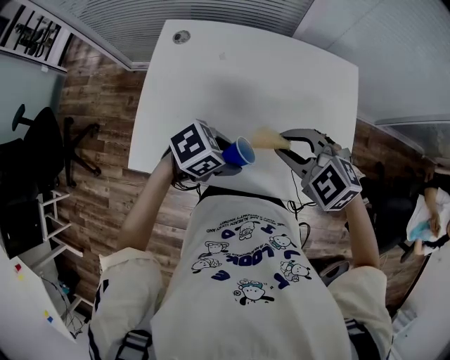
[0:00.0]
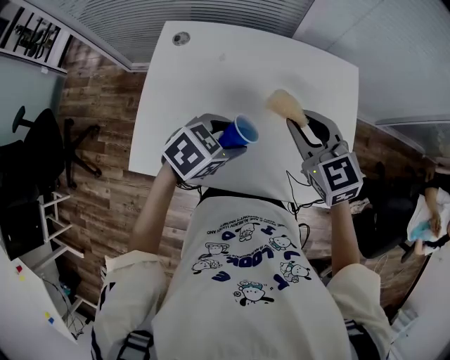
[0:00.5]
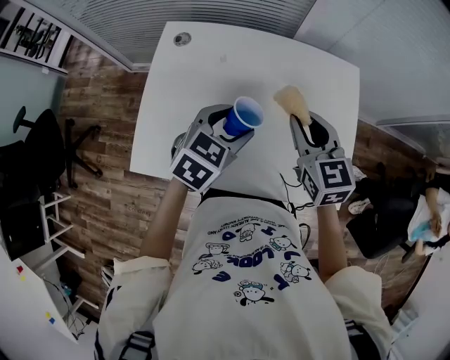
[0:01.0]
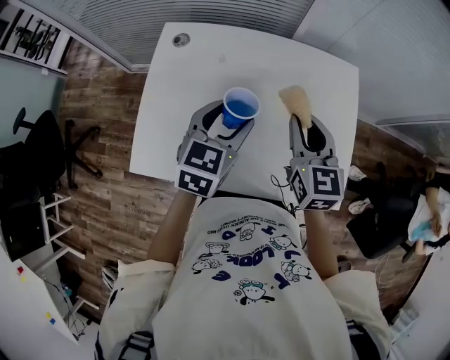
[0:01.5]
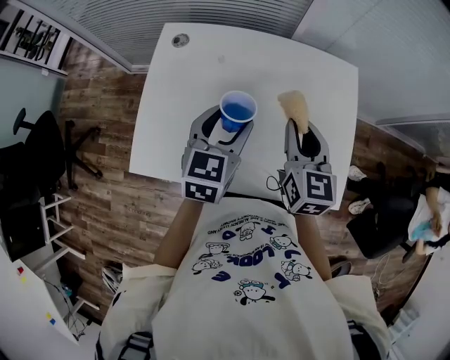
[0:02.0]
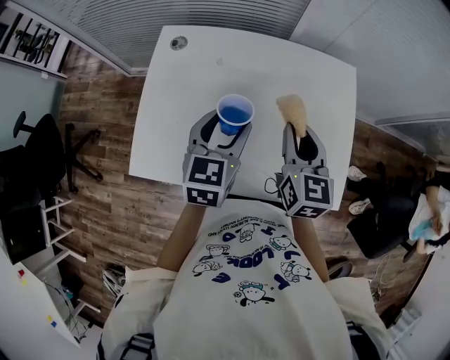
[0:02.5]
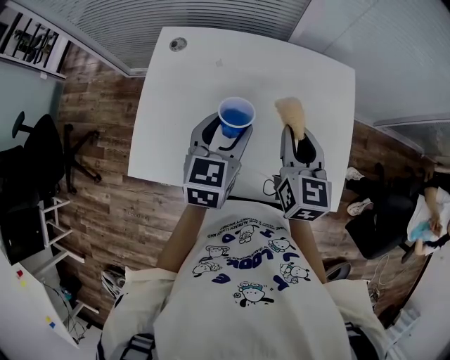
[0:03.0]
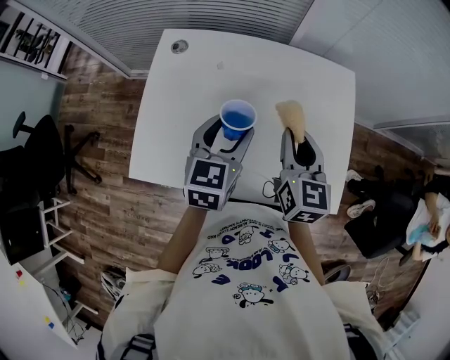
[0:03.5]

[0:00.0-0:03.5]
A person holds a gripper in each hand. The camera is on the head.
0:00.0 to 0:02.0: The left gripper moves some 15 cm, and rotates about 60 degrees. The right gripper shifts by about 10 cm, and changes its angle by approximately 70 degrees.
0:02.0 to 0:03.5: The two grippers keep their place.

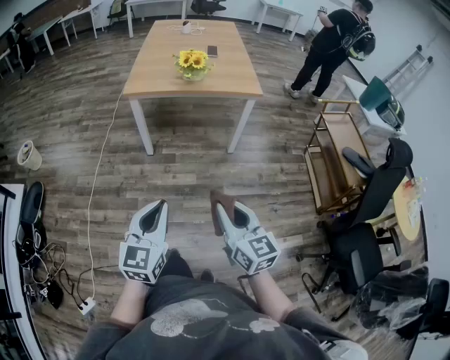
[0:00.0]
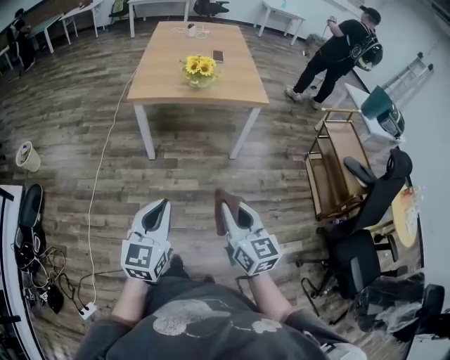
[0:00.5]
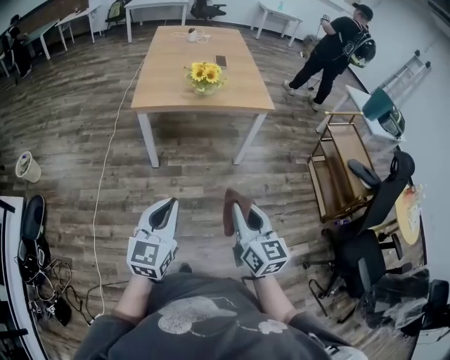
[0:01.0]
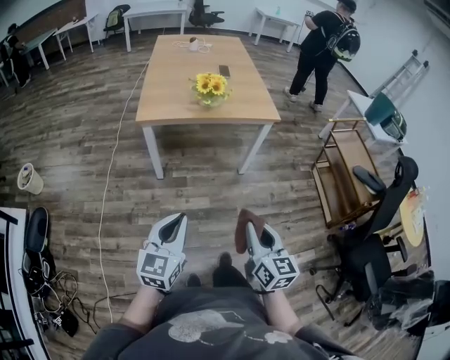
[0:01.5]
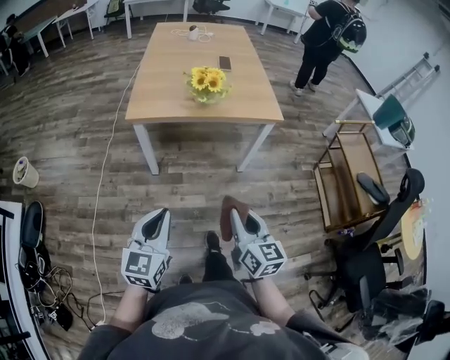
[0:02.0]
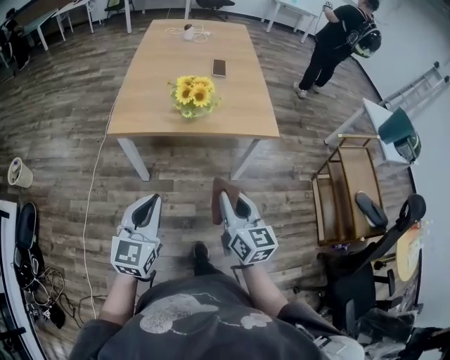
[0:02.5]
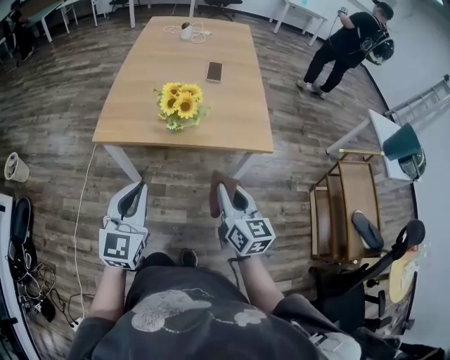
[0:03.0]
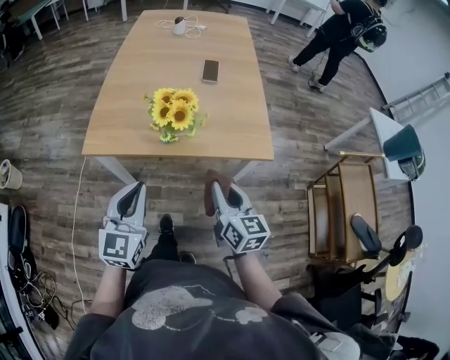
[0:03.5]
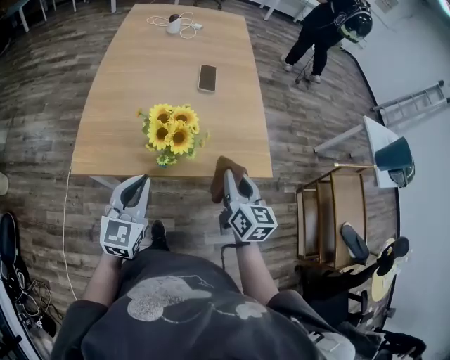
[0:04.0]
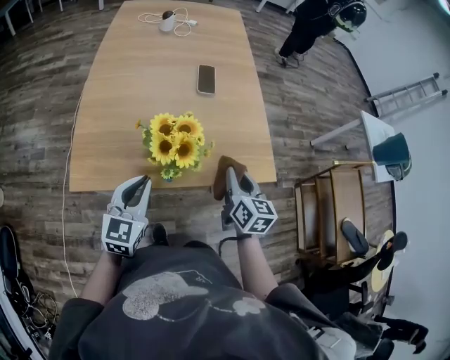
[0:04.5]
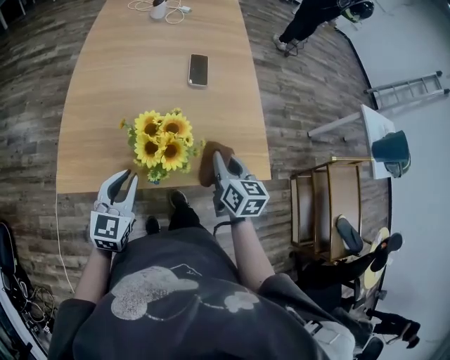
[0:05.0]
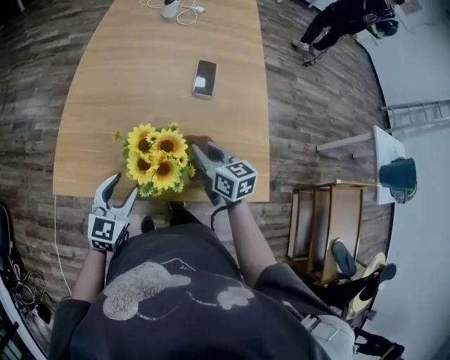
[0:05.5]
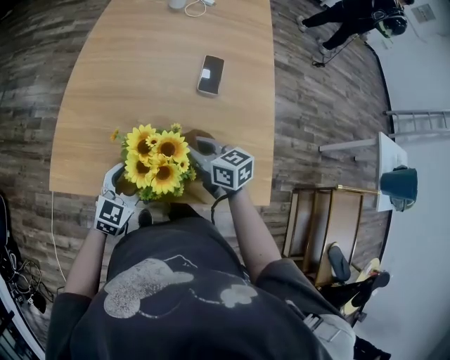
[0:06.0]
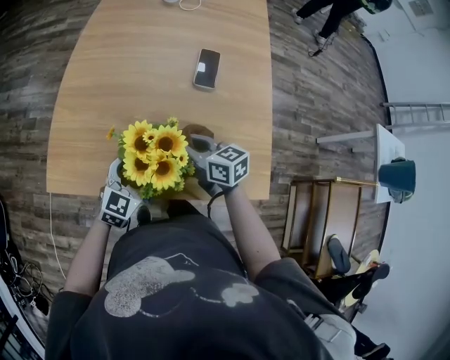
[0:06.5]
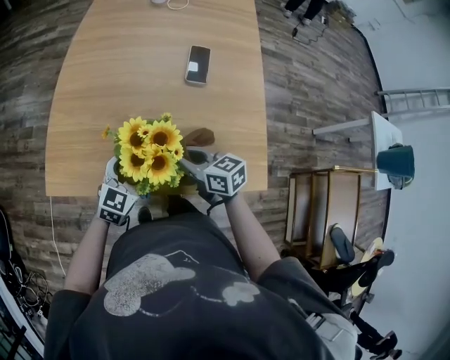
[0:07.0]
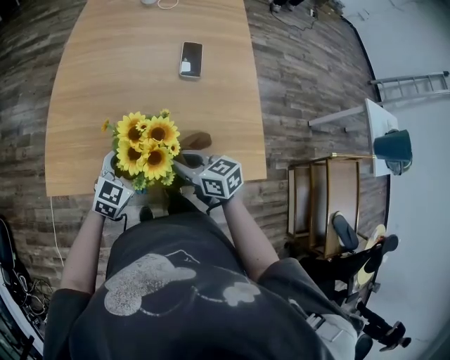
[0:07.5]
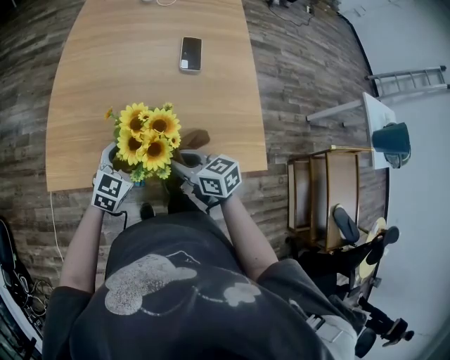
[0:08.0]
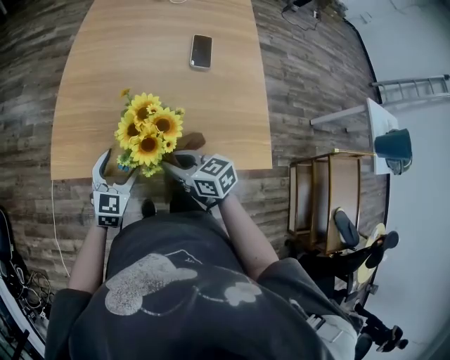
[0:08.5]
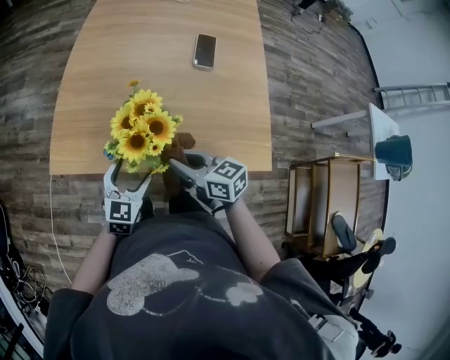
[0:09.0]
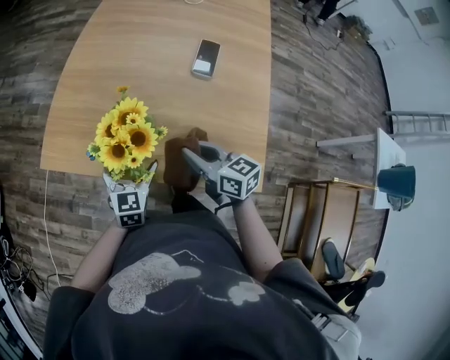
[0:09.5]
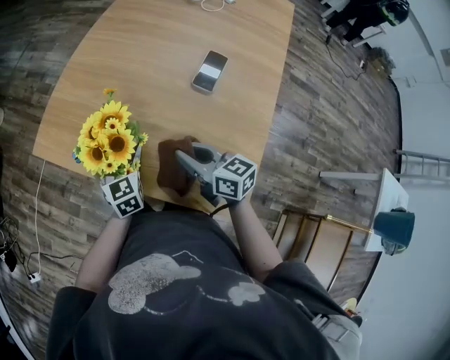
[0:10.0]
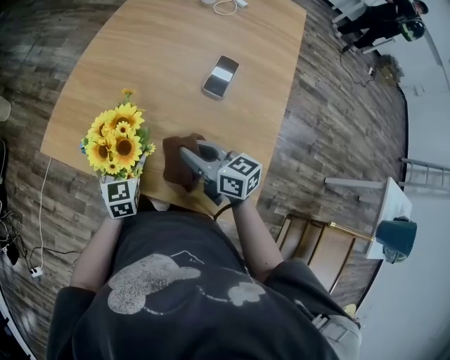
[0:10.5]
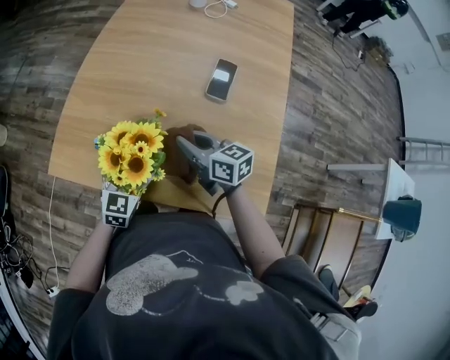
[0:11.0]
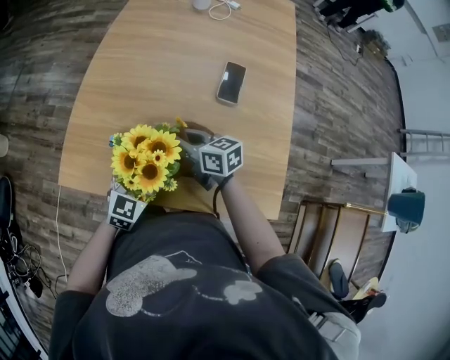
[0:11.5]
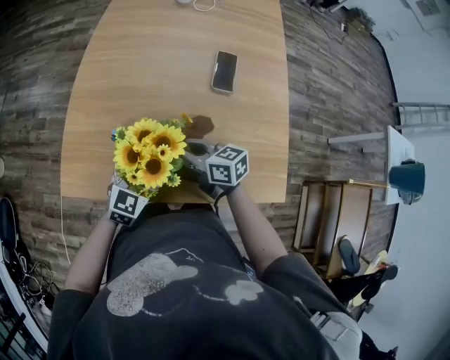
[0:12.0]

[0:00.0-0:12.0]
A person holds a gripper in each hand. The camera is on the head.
0:00.0 to 0:02.0: The left gripper moves forward and to the left, about 20 cm. Meanwhile the right gripper travels forward by some 20 cm.
0:02.0 to 0:04.0: The two grippers travel together, forward, approximately 40 cm.
0:04.0 to 0:06.0: The right gripper changes place by about 25 cm, and rotates about 50 degrees. The left gripper goes approximately 15 cm downward, and opens its fingers.
0:06.0 to 0:08.0: The right gripper goes some 10 cm backward.
0:08.0 to 0:10.0: The right gripper ends up roughly 10 cm from where it was. The left gripper rotates about 70 degrees.
0:10.0 to 0:12.0: The right gripper ends up about 15 cm from where it was; the left gripper changes its angle by some 60 degrees.

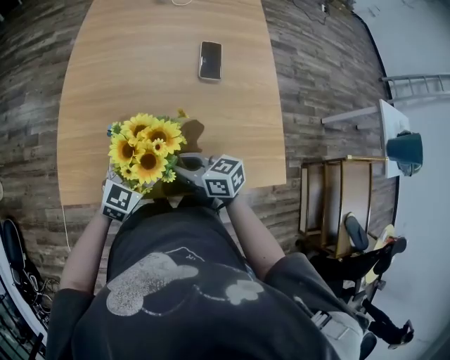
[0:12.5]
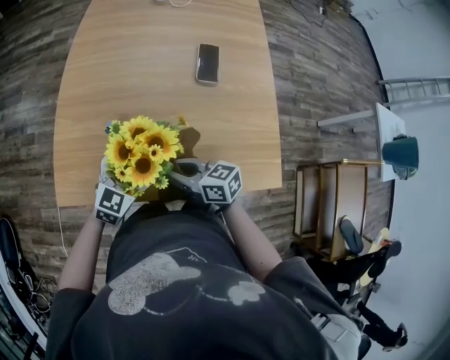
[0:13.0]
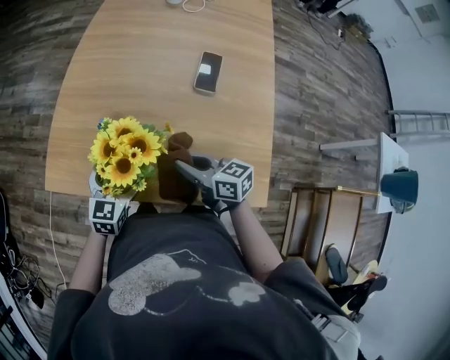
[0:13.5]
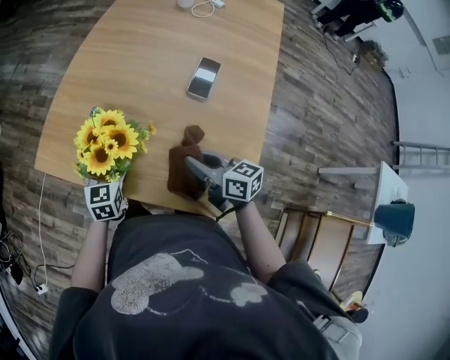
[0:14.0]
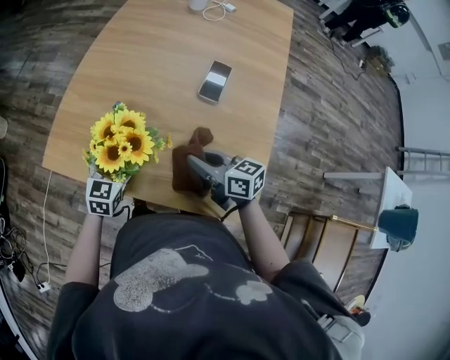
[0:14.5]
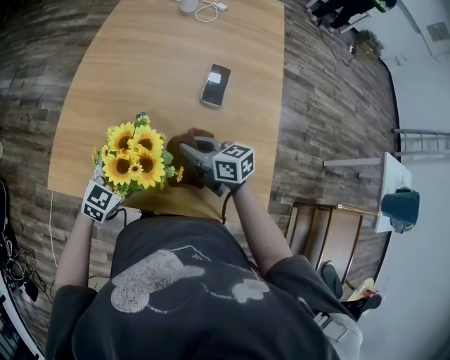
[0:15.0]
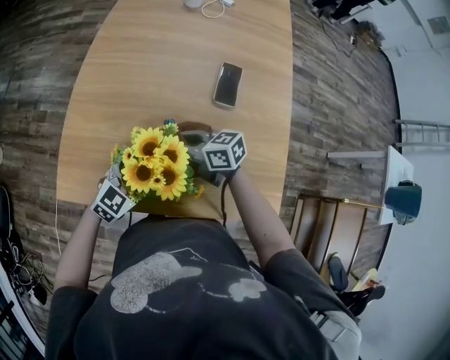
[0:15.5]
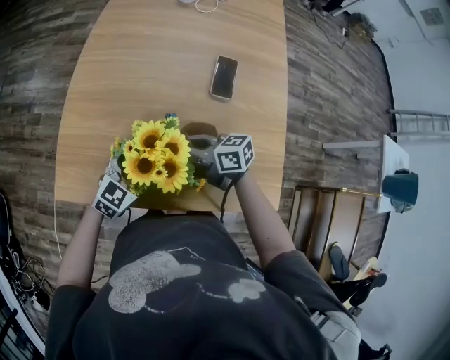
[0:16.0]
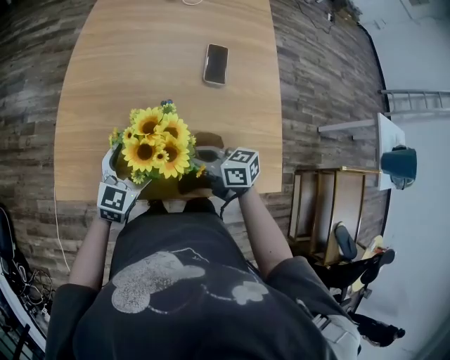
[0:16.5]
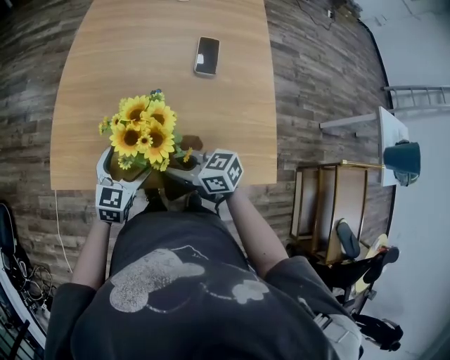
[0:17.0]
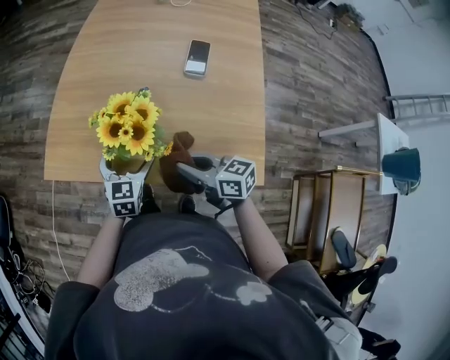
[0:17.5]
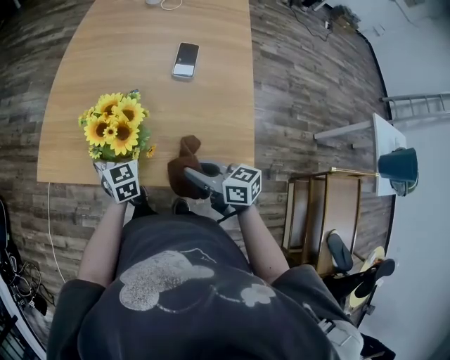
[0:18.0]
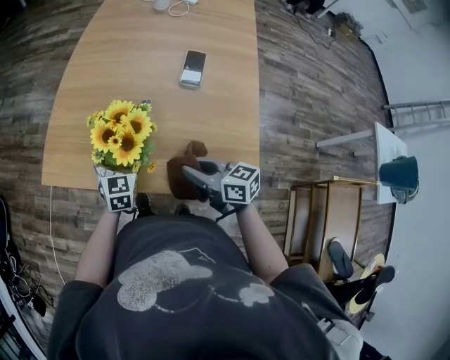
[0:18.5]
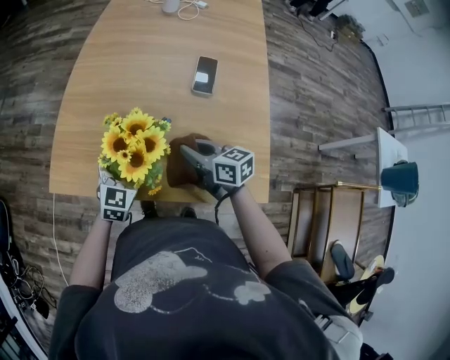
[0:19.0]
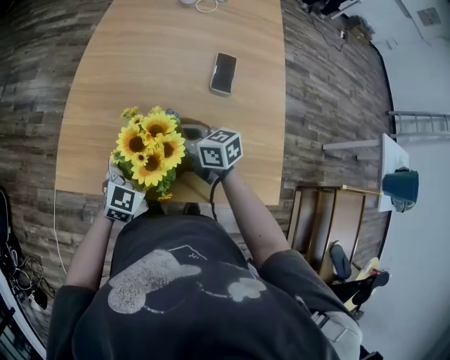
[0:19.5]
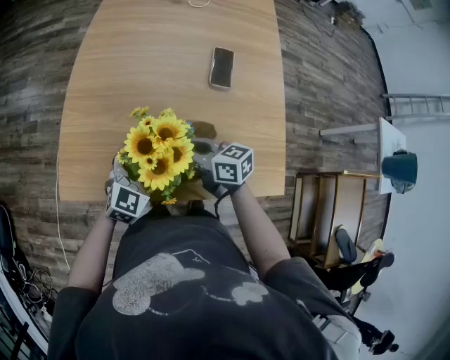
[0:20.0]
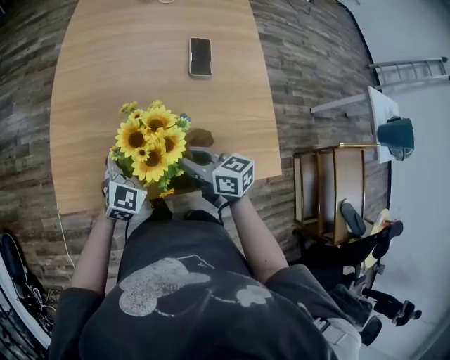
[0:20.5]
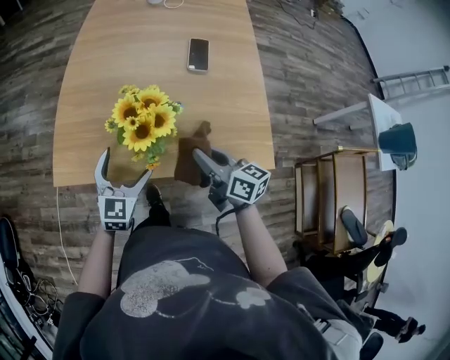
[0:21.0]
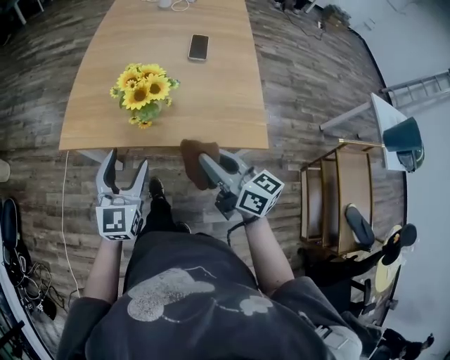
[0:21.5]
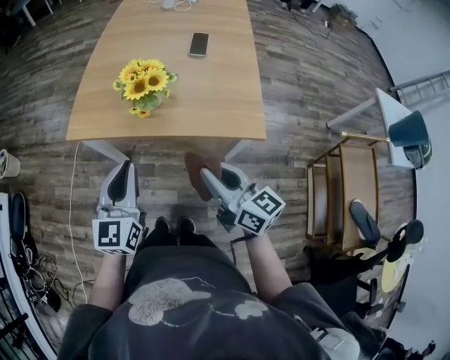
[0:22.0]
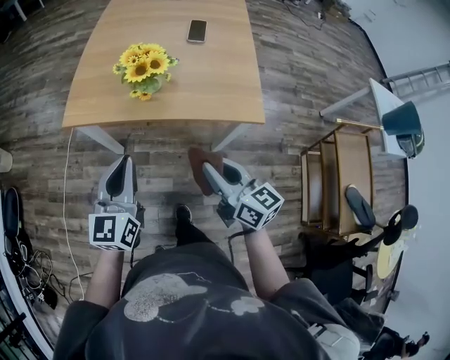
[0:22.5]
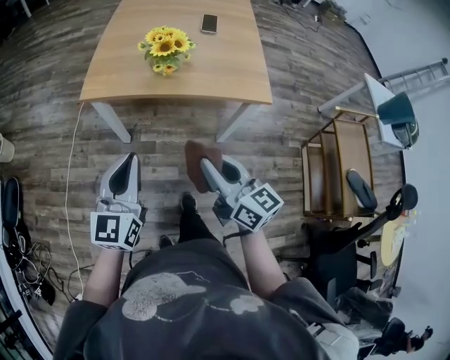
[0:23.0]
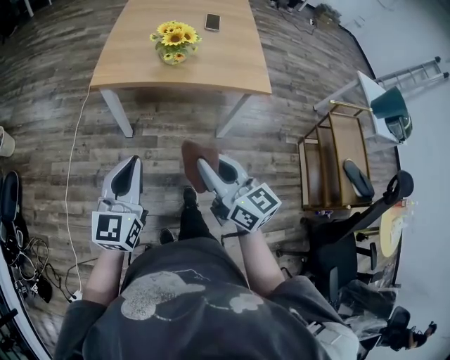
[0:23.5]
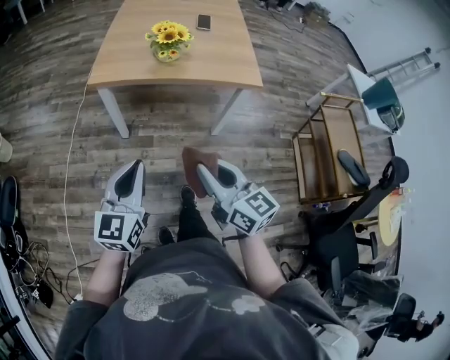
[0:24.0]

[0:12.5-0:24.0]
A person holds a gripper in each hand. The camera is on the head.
0:12.5 to 0:14.5: The right gripper shifts by approximately 15 cm, while the left gripper swivels roughly 40 degrees.
0:14.5 to 0:16.5: The left gripper swivels roughly 30 degrees.
0:16.5 to 0:18.5: The left gripper rotates approximately 30 degrees. The right gripper moves backward and to the right, some 10 cm.
0:18.5 to 0:20.0: The right gripper moves forward and to the left, roughly 15 cm, while the left gripper changes its angle by some 40 degrees.
0:20.0 to 0:22.0: The two grippers go roughly 35 cm backward and upward. The left gripper turns by some 40 degrees, and closes its fingers; the right gripper rotates roughly 30 degrees.
0:22.0 to 0:24.0: The grippers both shift backward and to the left by about 25 cm.
